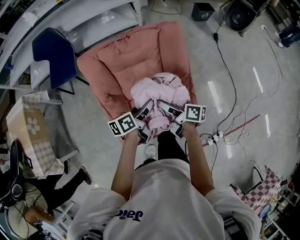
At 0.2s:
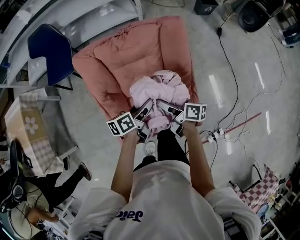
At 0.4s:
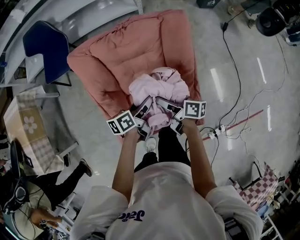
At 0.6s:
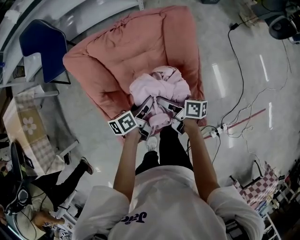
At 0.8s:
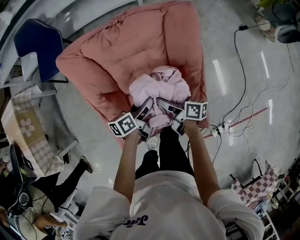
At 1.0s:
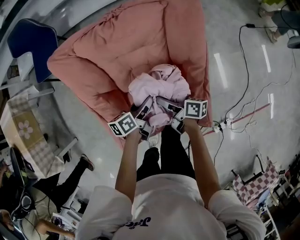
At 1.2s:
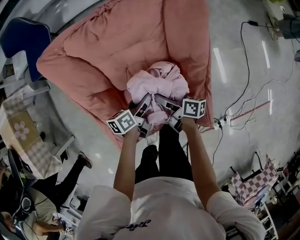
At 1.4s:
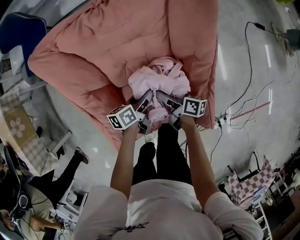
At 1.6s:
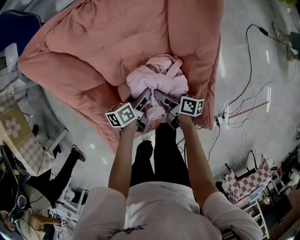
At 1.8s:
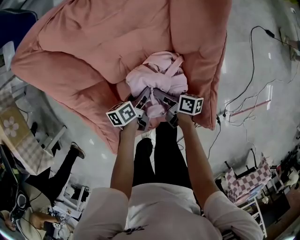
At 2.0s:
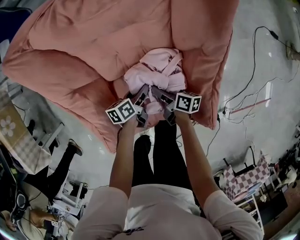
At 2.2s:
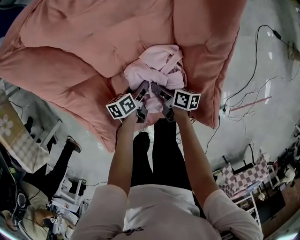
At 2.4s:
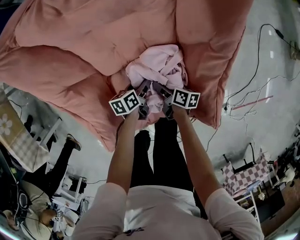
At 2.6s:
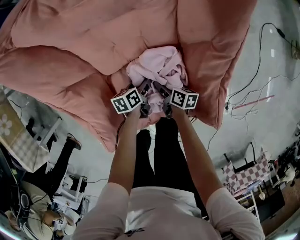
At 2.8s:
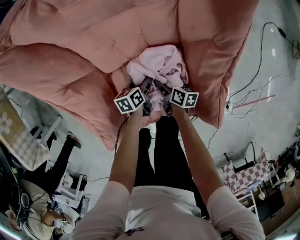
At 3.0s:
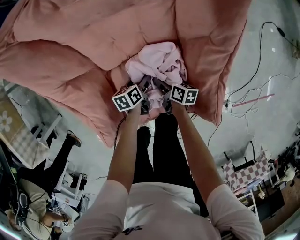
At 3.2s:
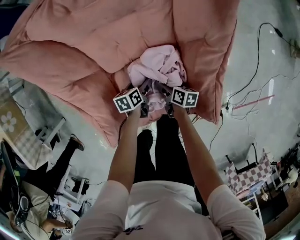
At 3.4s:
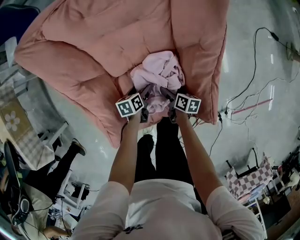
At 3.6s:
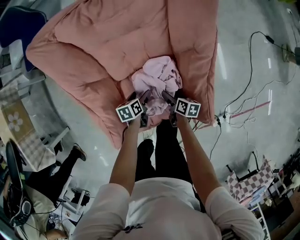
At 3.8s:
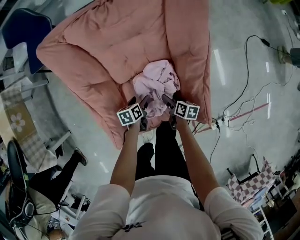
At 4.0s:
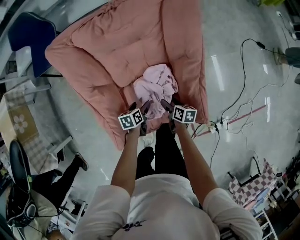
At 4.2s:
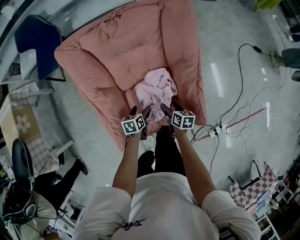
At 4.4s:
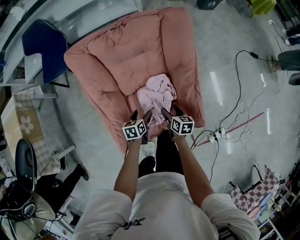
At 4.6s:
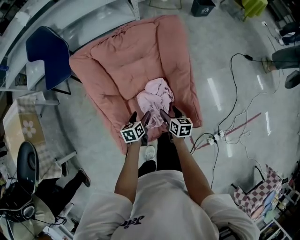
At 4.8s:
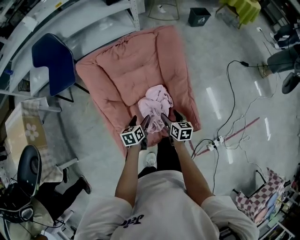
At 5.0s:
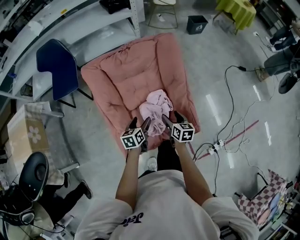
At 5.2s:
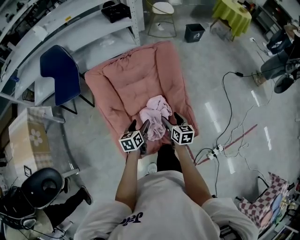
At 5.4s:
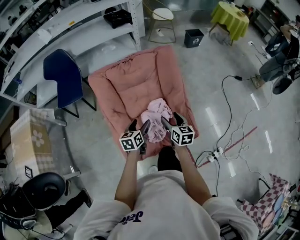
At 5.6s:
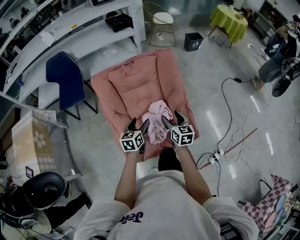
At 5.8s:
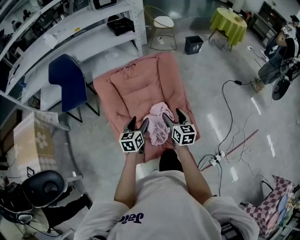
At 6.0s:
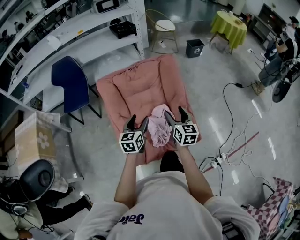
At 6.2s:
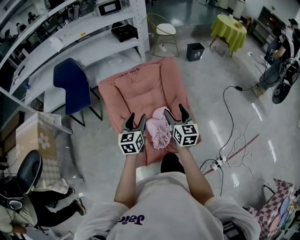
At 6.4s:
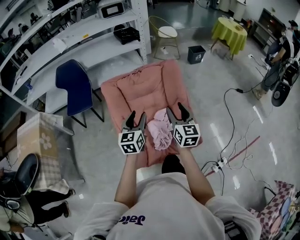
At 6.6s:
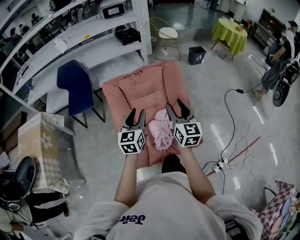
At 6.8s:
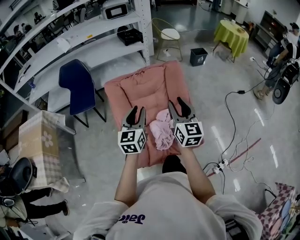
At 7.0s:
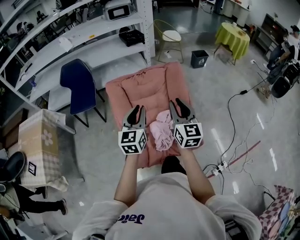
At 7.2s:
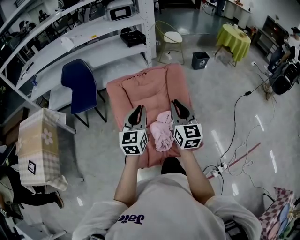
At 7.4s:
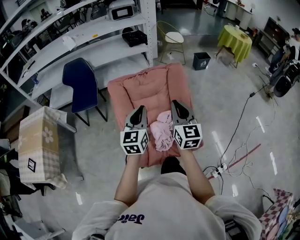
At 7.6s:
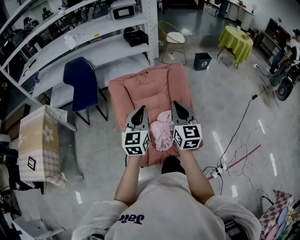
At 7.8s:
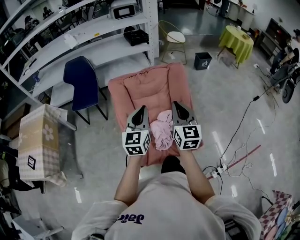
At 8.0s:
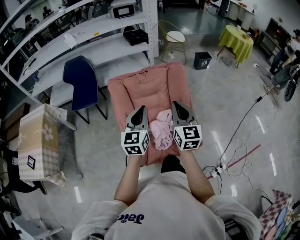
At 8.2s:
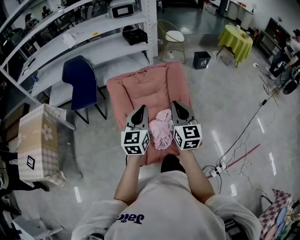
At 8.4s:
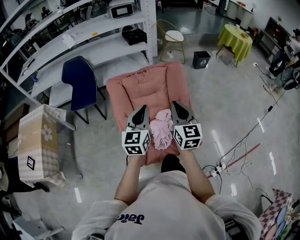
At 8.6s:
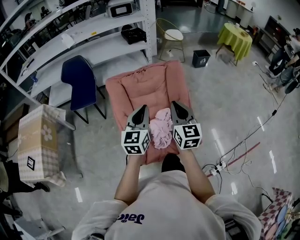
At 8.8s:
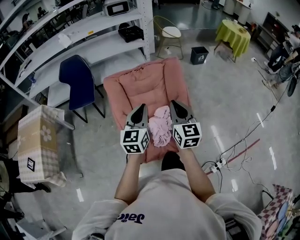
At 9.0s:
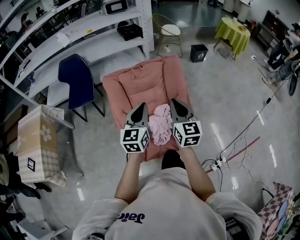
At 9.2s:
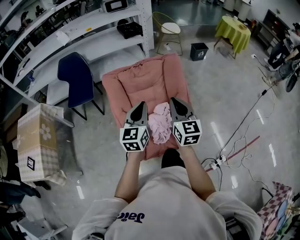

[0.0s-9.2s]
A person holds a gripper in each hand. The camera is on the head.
0.0s to 1.6s: Both grippers move downward, roughly 30 cm.
1.6s to 3.0s: The two grippers go some 15 cm downward.
3.0s to 4.6s: The grippers both shift upward by about 25 cm. The left gripper changes its angle by approximately 20 degrees. Meanwhile the right gripper rotates some 30 degrees.
4.6s to 6.2s: Both grippers travel together upward, about 30 cm. The right gripper changes its angle by roughly 40 degrees, while the left gripper turns by about 40 degrees.
6.2s to 7.6s: Both grippers move upward, some 10 cm. The left gripper closes. Meanwhile the right gripper closes its fingers.
7.6s to 9.2s: The grippers stay close to where they were, moving slightly.

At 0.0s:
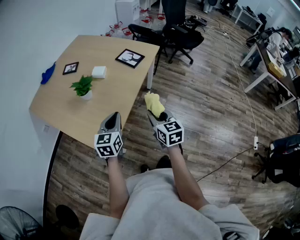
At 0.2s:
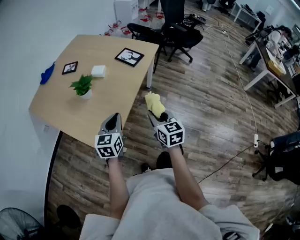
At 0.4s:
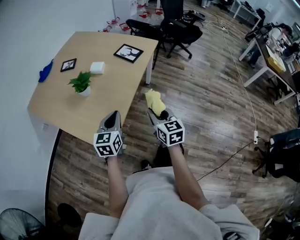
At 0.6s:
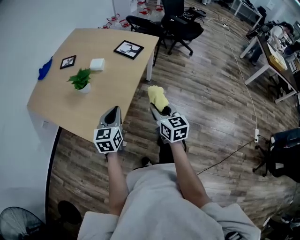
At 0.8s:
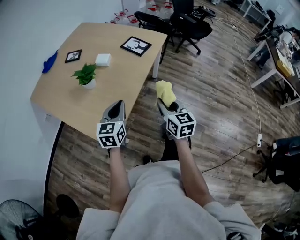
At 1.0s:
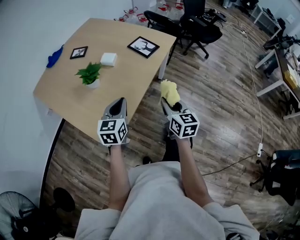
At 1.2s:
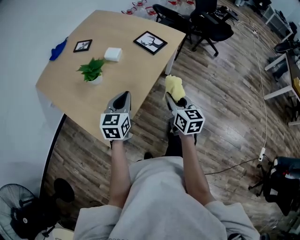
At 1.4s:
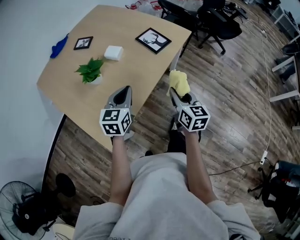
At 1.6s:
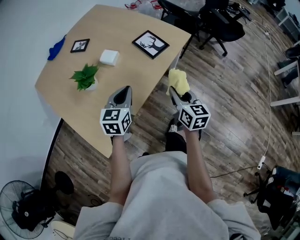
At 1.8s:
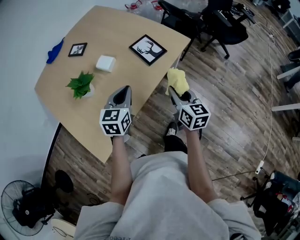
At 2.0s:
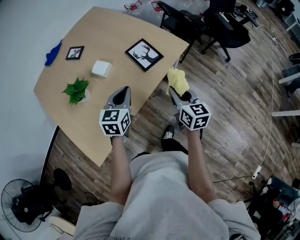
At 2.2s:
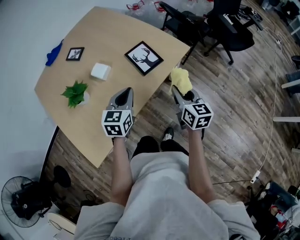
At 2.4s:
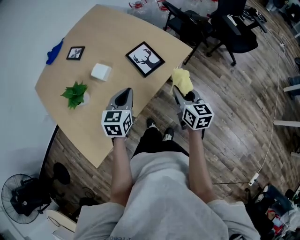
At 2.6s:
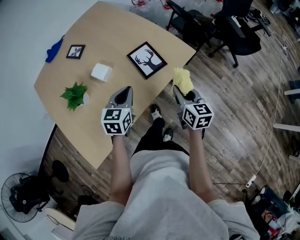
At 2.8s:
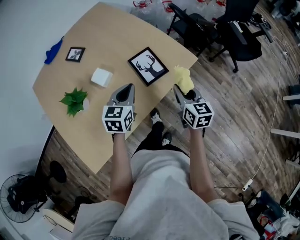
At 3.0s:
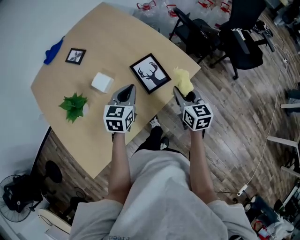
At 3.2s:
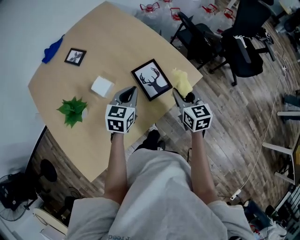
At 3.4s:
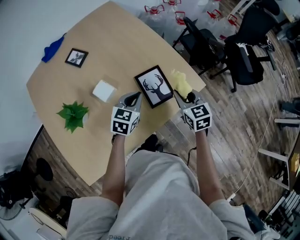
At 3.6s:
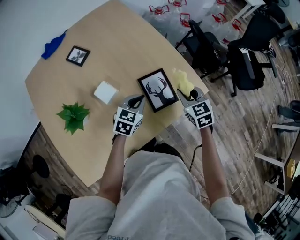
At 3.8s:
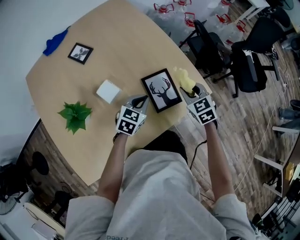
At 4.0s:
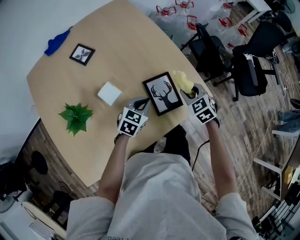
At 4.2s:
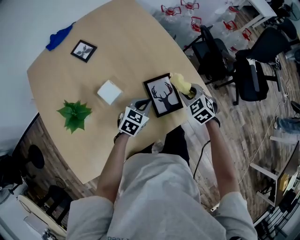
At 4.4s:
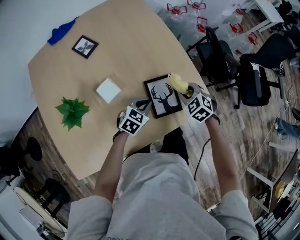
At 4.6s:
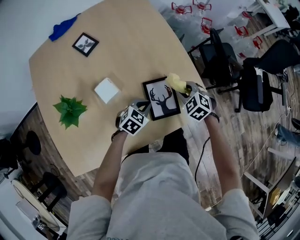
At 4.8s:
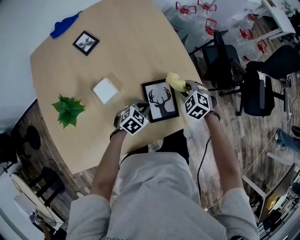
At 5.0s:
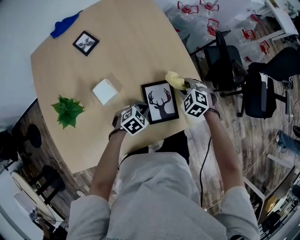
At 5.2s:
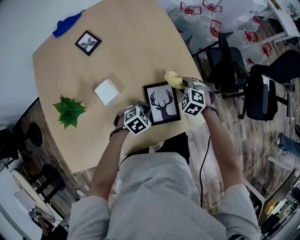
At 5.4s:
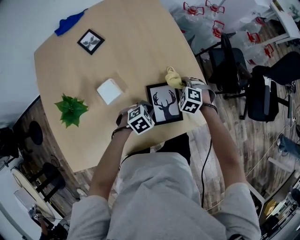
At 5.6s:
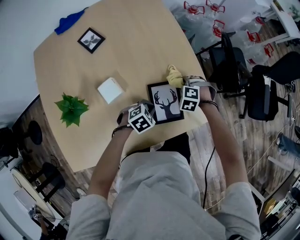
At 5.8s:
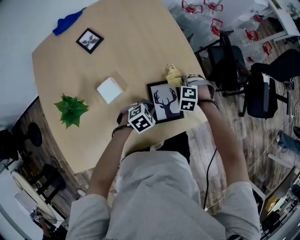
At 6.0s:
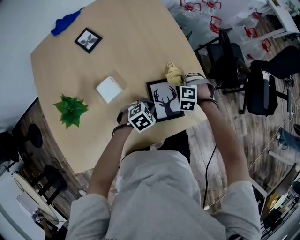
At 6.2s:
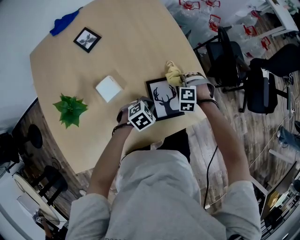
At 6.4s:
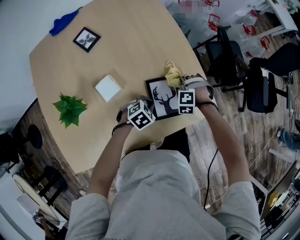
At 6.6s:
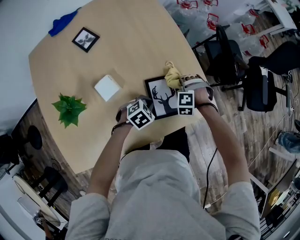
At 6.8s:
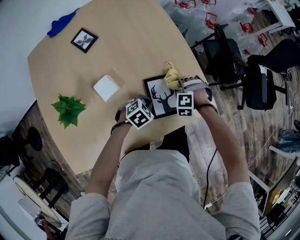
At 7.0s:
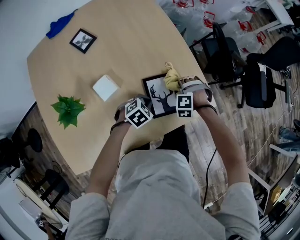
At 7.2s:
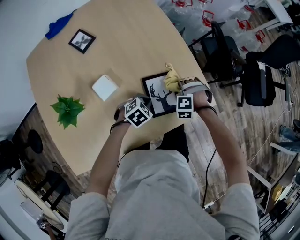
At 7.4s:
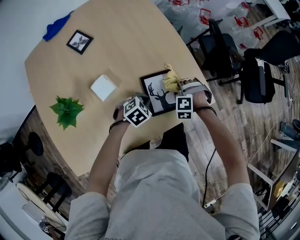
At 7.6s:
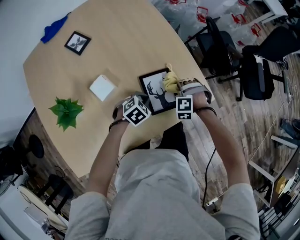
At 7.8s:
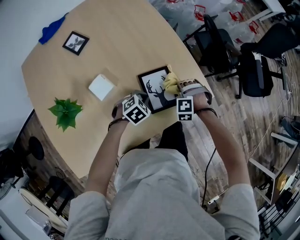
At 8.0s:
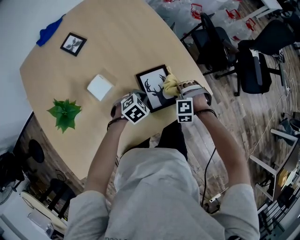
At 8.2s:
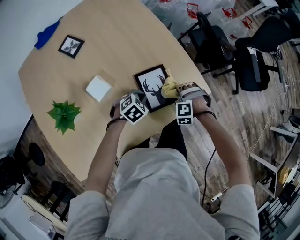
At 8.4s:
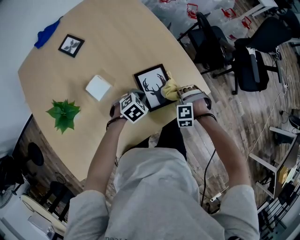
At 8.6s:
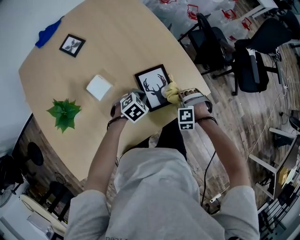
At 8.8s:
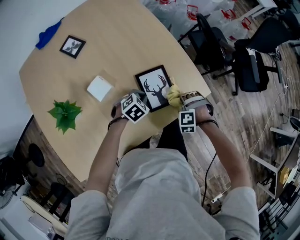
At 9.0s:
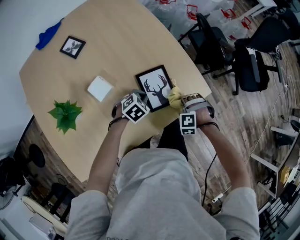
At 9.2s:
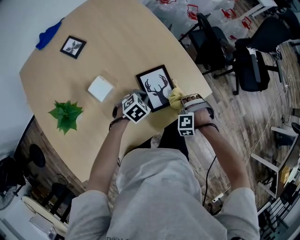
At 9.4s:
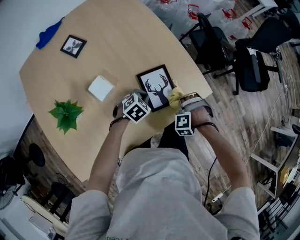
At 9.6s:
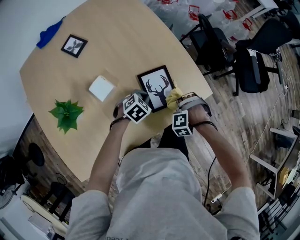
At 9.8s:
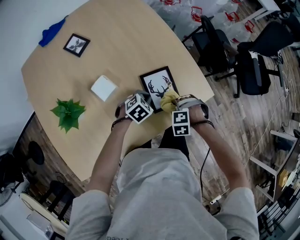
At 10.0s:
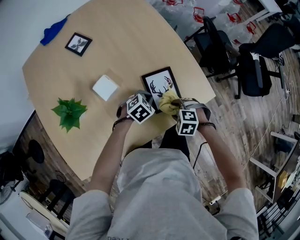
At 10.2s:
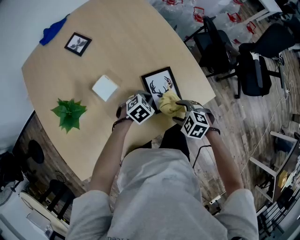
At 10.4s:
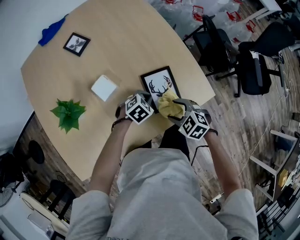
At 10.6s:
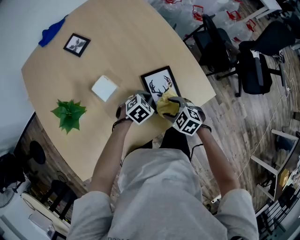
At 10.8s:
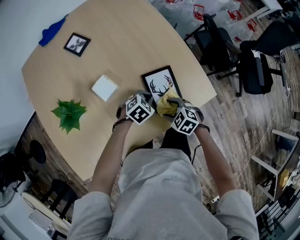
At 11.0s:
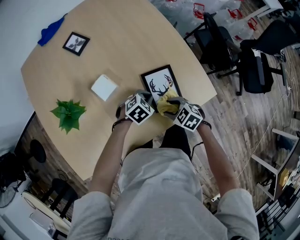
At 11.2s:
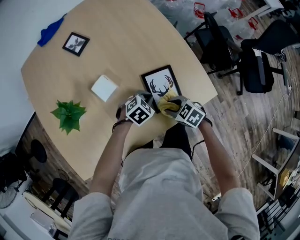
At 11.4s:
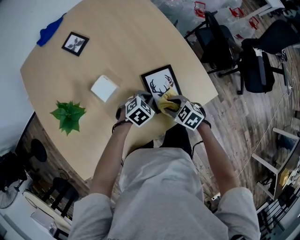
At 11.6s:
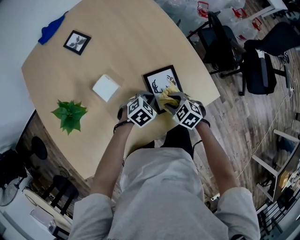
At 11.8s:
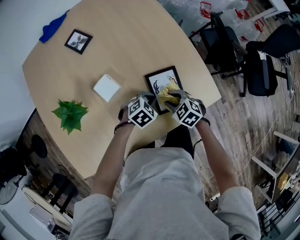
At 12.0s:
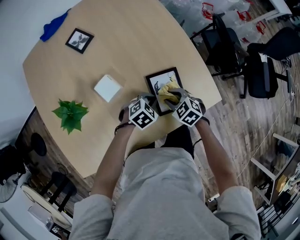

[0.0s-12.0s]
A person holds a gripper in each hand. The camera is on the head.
0.0s to 1.6s: The grippers both shift forward by some 20 cm.
1.6s to 3.0s: The two grippers go approximately 25 cm forward.
3.0s to 4.4s: The left gripper goes approximately 15 cm downward and forward. Meanwhile the right gripper is displaced forward and downward by some 20 cm, and rotates around the line of its fingers by about 50 degrees, counterclockwise from behind.
4.4s to 6.0s: The left gripper shifts some 5 cm downward, and rotates about 20 degrees; the right gripper goes some 10 cm downward and forward, and changes its angle by about 40 degrees.
6.0s to 7.6s: The right gripper goes about 10 cm to the right and backward.
7.6s to 9.0s: The right gripper is displaced to the right and backward by roughly 10 cm.
9.0s to 10.4s: The right gripper ends up approximately 10 cm from where it was, swivels approximately 50 degrees, and opens its fingers.
10.4s to 12.0s: The right gripper changes place by some 10 cm, and closes.

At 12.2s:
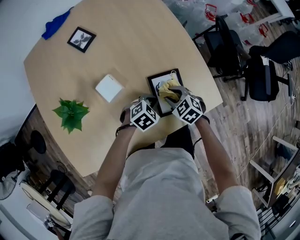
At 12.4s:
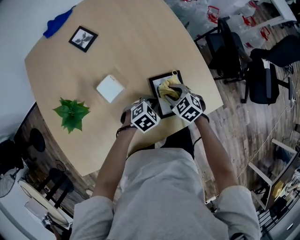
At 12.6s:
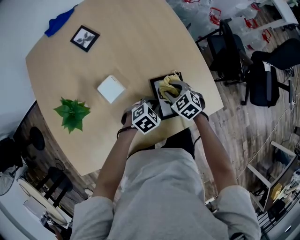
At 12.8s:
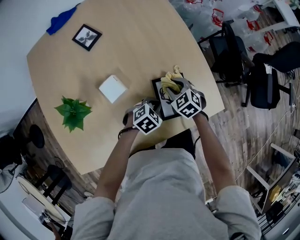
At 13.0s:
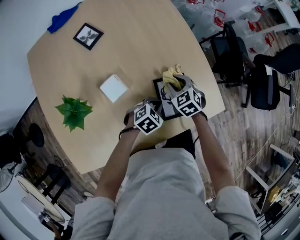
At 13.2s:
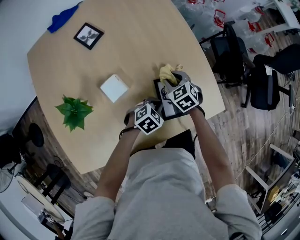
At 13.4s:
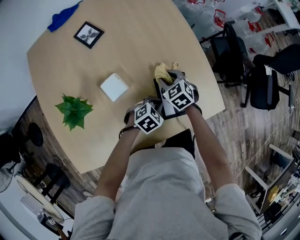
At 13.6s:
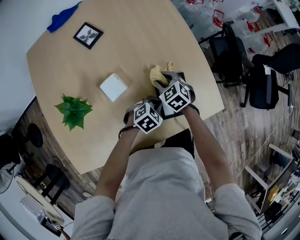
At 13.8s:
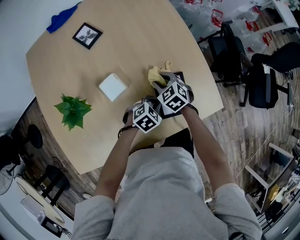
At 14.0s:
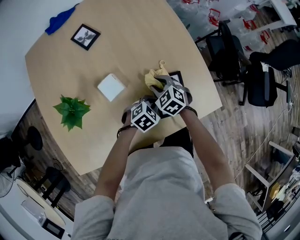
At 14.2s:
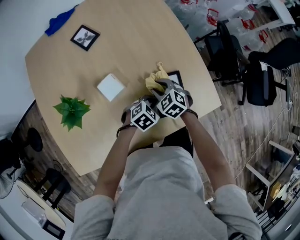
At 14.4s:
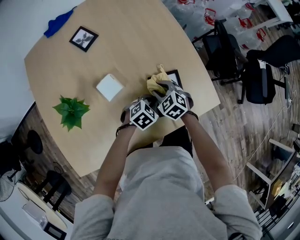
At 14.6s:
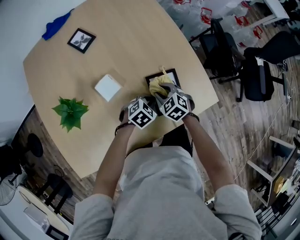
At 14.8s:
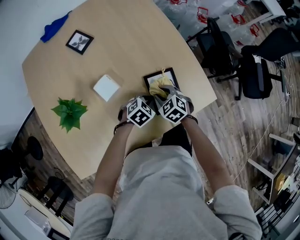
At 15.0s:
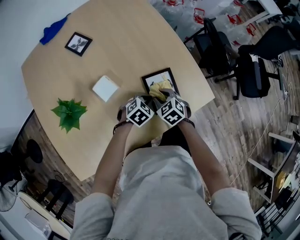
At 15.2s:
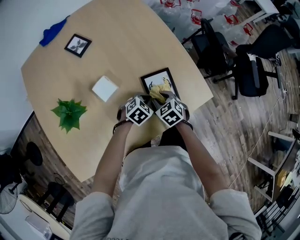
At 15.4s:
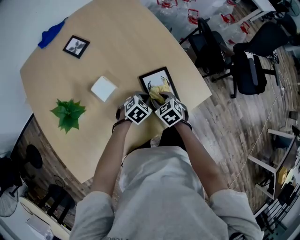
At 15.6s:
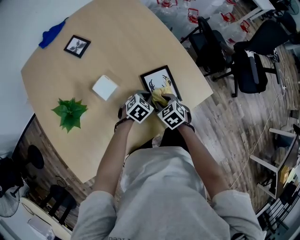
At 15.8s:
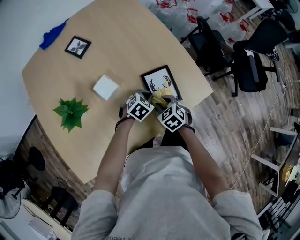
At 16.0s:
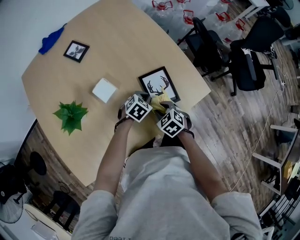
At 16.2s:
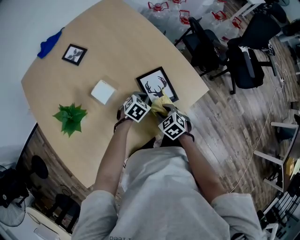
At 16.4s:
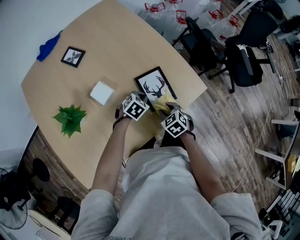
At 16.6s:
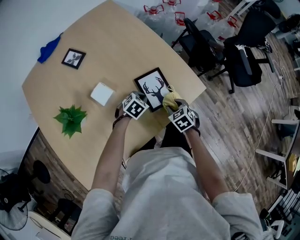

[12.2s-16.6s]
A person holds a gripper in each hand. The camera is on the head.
12.2s to 13.6s: The right gripper travels to the left and forward by about 10 cm.
13.6s to 15.2s: The right gripper heads backward and to the right, covering roughly 10 cm.
15.2s to 16.6s: The right gripper shifts roughly 10 cm to the right.
